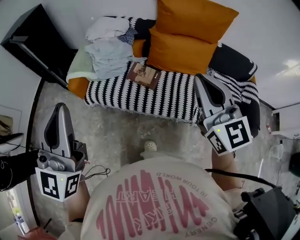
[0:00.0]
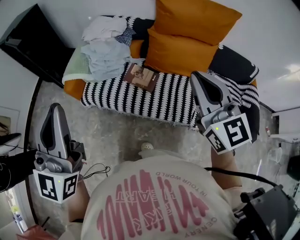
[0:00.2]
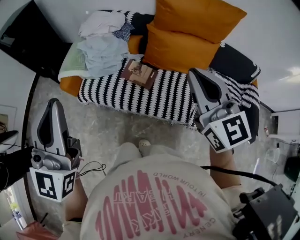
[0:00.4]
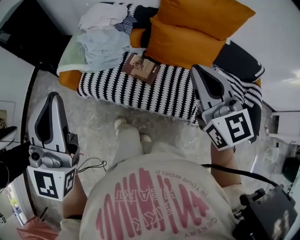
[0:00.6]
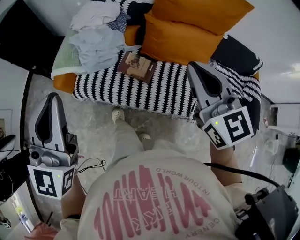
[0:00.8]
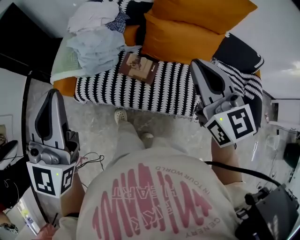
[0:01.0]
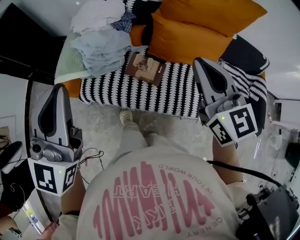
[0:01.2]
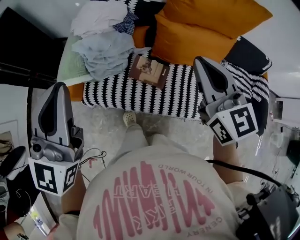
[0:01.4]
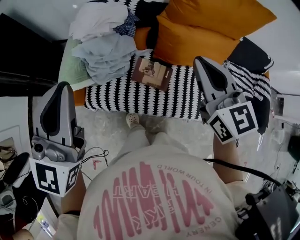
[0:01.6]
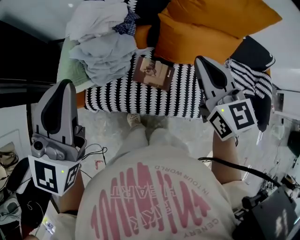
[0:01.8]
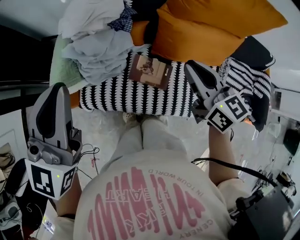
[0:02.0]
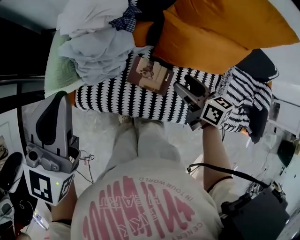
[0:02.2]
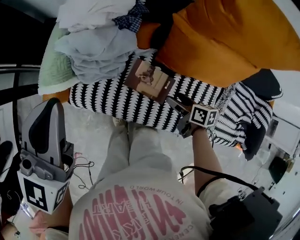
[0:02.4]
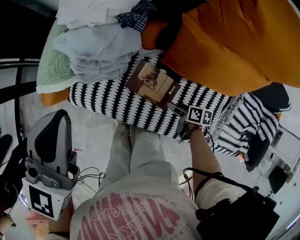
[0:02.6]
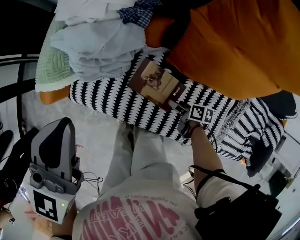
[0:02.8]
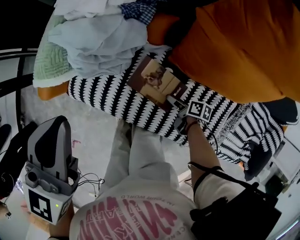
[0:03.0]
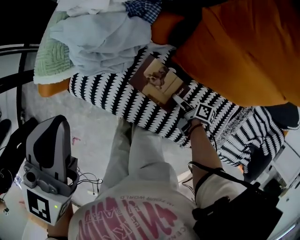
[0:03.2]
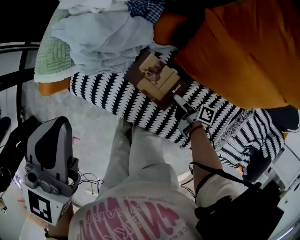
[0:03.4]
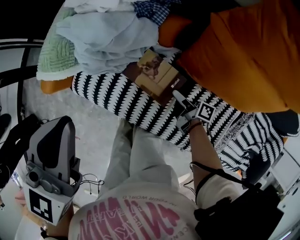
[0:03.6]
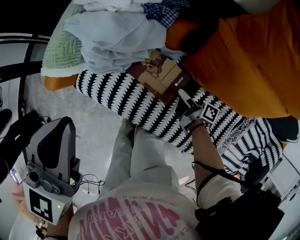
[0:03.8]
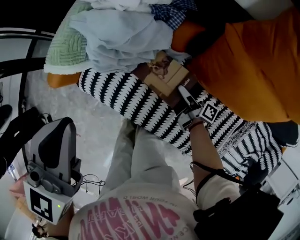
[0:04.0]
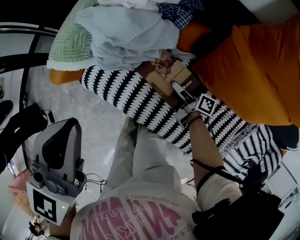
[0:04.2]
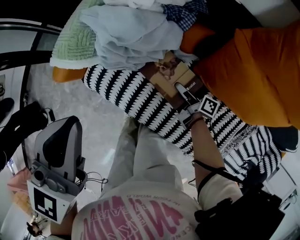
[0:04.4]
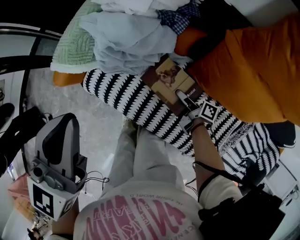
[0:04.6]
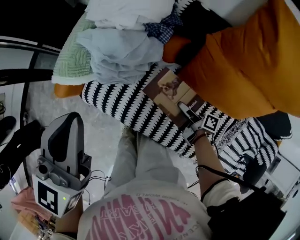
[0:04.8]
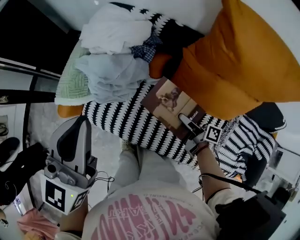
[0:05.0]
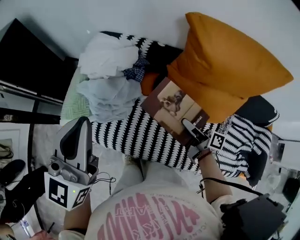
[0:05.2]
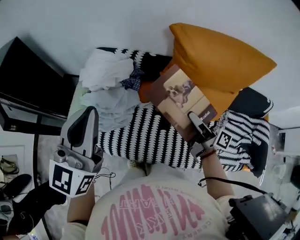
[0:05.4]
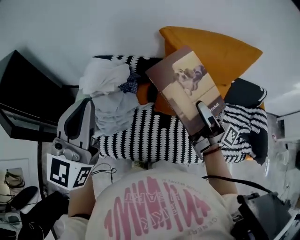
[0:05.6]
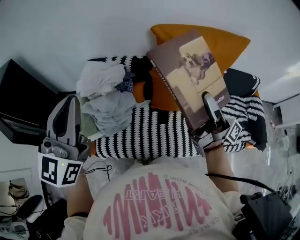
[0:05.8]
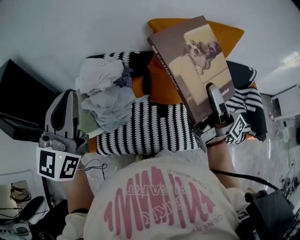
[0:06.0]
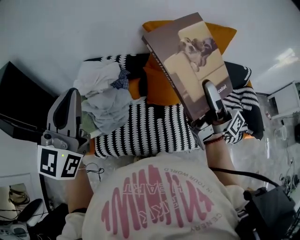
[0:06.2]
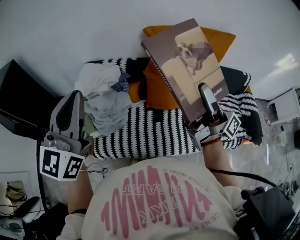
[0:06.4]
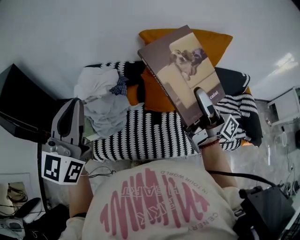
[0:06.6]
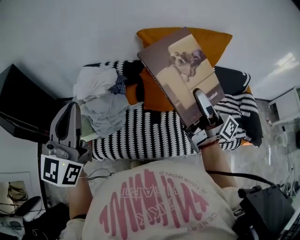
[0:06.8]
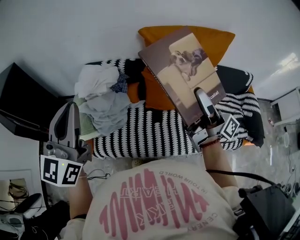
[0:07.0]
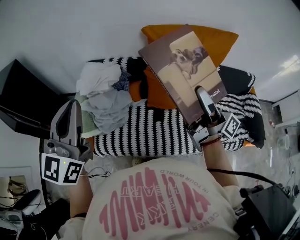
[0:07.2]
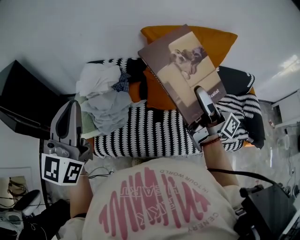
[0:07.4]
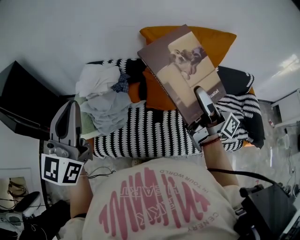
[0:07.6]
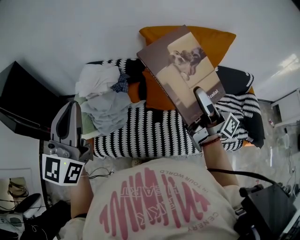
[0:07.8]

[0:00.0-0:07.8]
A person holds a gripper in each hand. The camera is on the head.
0:00.0 to 0:01.6: The grippers both shift forward by roughly 25 cm.
0:01.6 to 0:03.2: The left gripper travels downward by about 20 cm, and rotates roughly 30 degrees. The right gripper goes approximately 50 cm downward, twists roughly 80 degrees clockwise, seen from behind, and opens its fingers.
0:03.2 to 0:04.6: The right gripper goes about 10 cm forward, upward and to the left, and closes, while the left gripper changes place by some 5 cm.
0:04.6 to 0:06.2: The left gripper travels upward by approximately 20 cm, and swivels about 40 degrees. The right gripper goes some 60 cm upward, and points its fingers about 50 degrees further upward.
0:06.2 to 0:07.8: There are only small adjustments of the grippers.

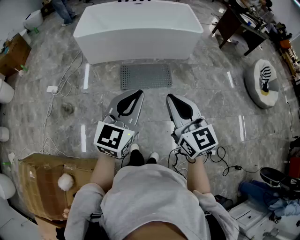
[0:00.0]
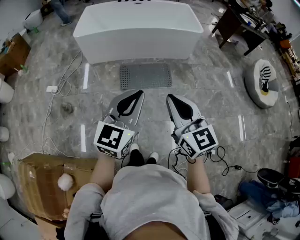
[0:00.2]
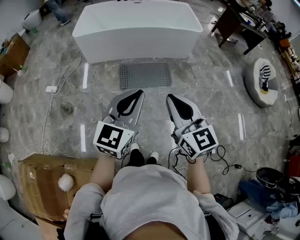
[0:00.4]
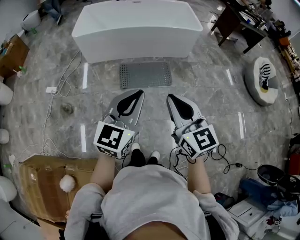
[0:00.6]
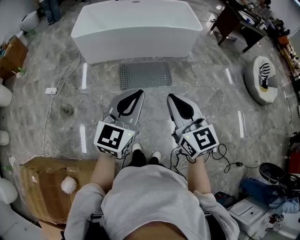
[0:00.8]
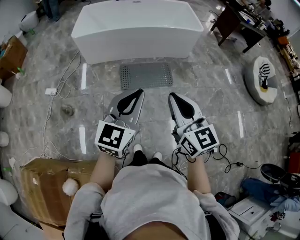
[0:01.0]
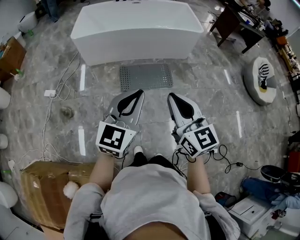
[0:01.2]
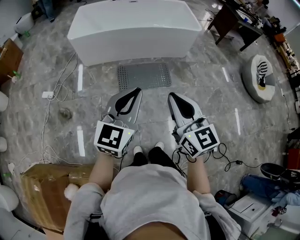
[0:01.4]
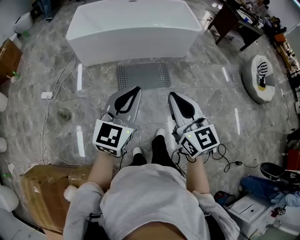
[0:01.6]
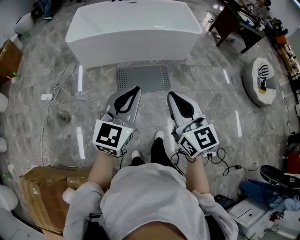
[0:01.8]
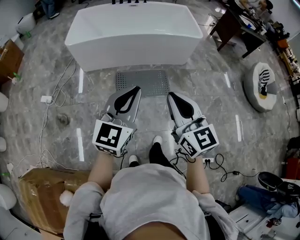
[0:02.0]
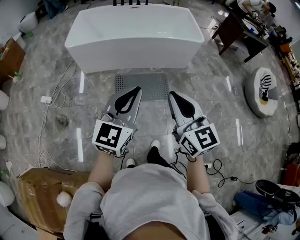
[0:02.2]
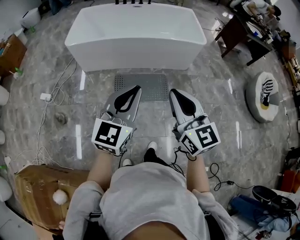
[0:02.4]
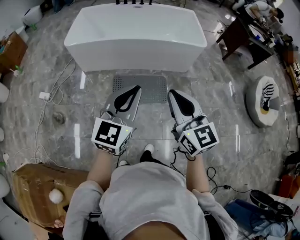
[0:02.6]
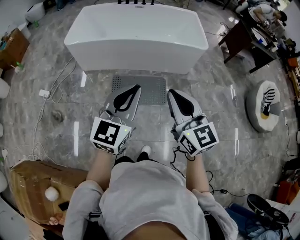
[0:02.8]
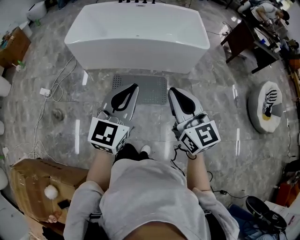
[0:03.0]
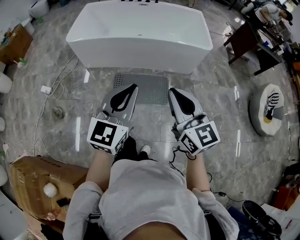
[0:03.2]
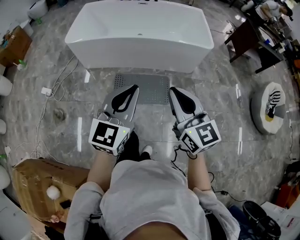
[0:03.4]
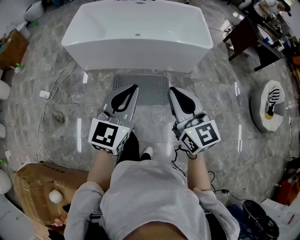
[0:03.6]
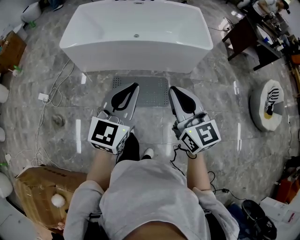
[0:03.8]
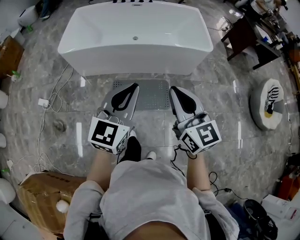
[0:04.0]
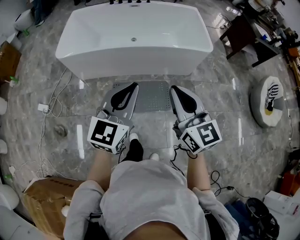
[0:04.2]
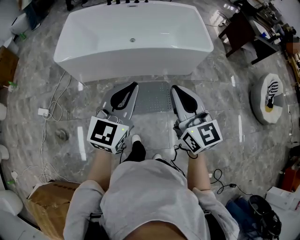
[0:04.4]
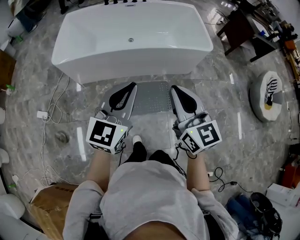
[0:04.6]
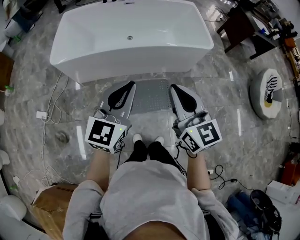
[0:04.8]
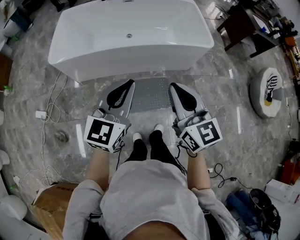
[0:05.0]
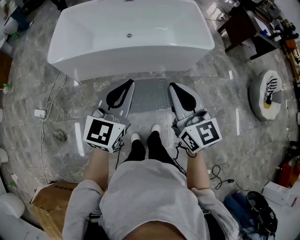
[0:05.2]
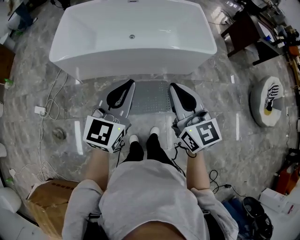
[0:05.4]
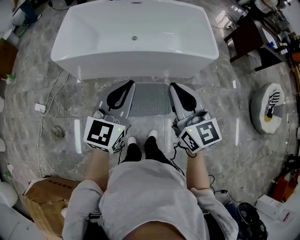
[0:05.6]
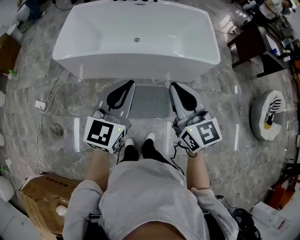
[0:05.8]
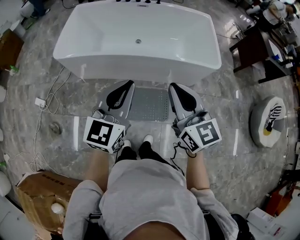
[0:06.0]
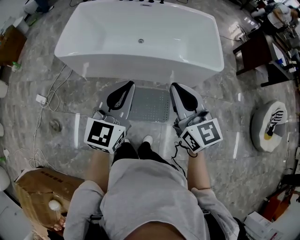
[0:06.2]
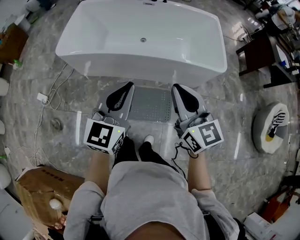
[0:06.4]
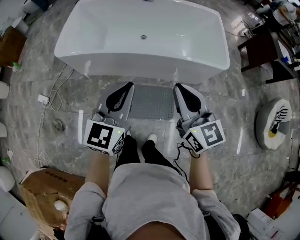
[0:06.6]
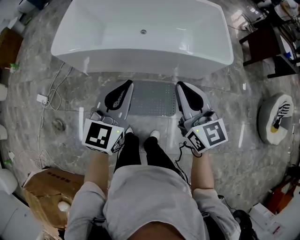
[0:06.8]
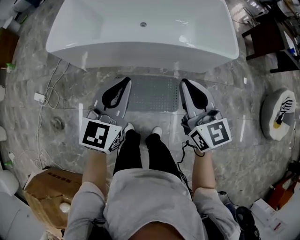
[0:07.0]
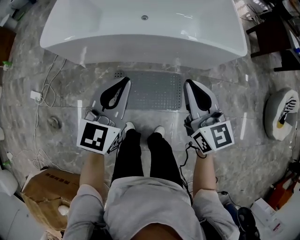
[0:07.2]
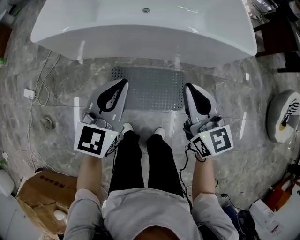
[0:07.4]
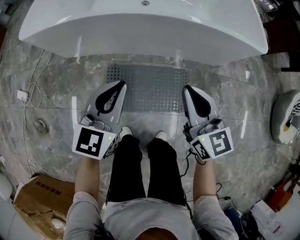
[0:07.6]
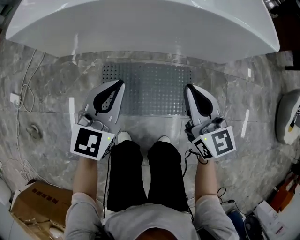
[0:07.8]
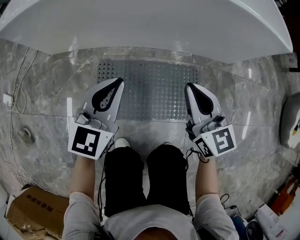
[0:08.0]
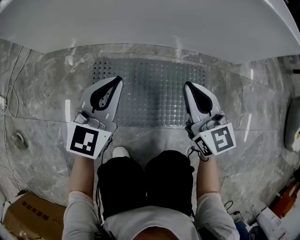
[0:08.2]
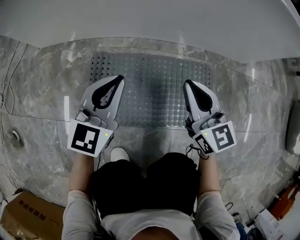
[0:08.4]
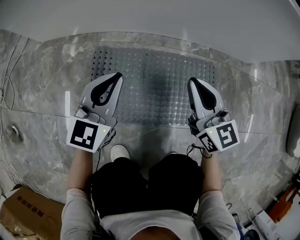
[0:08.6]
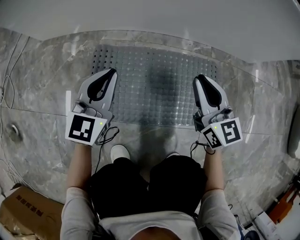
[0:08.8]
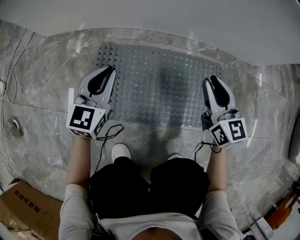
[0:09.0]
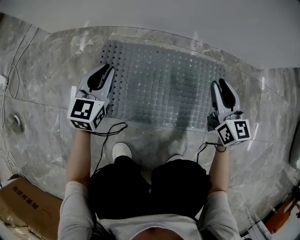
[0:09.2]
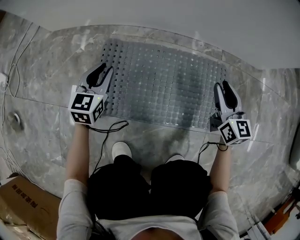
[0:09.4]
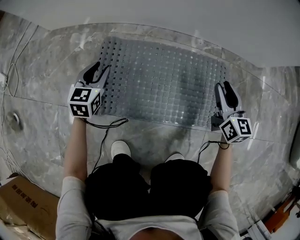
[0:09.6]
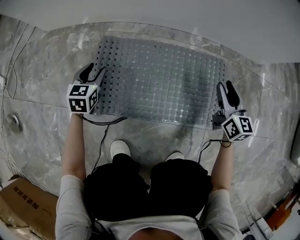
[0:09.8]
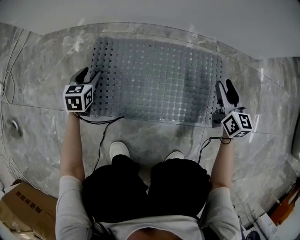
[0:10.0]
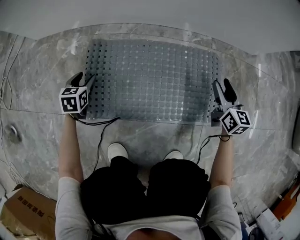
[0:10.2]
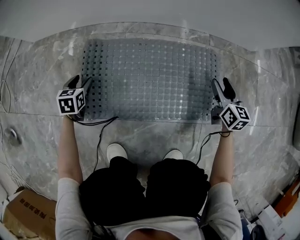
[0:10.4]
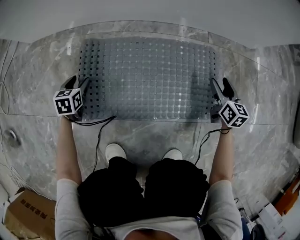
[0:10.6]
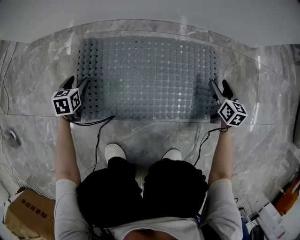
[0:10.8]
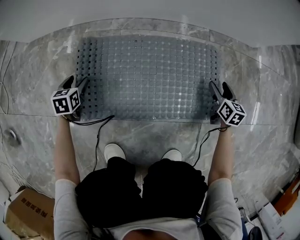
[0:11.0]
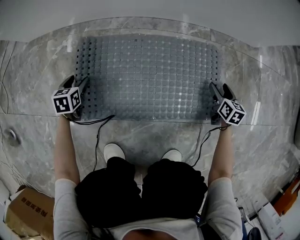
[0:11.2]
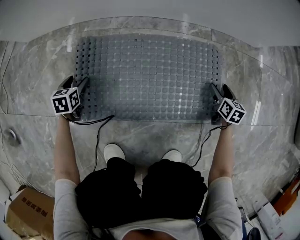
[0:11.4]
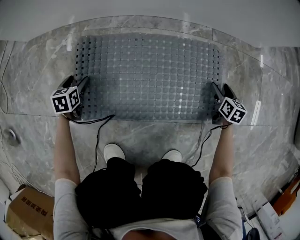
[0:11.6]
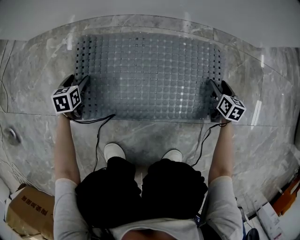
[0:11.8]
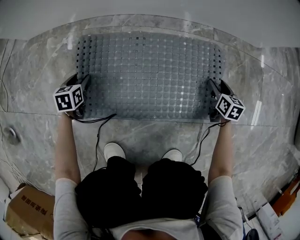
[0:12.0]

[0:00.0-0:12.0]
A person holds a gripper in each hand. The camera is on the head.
0:00.0 to 0:01.6: The left gripper shifts some 10 cm forward and to the left, while the right gripper moves forward, roughly 5 cm.
0:01.6 to 0:03.0: Both grippers travel together forward and to the right, some 25 cm.
0:03.0 to 0:04.4: The grippers both shift forward by approximately 20 cm.
0:04.4 to 0:06.0: Both grippers travel together forward, about 15 cm.
0:06.0 to 0:07.6: Both grippers move downward, roughly 40 cm.
0:07.6 to 0:09.0: Both grippers move downward, approximately 40 cm.
0:09.0 to 0:10.4: The right gripper travels to the right and downward by roughly 20 cm, rotates some 20 degrees, and opens its fingers; the left gripper travels downward and to the left by some 25 cm, angles its fingers downward, by roughly 30 degrees, and opens its fingers.
0:10.4 to 0:12.0: The right gripper moves downward, roughly 10 cm, and swivels some 20 degrees.

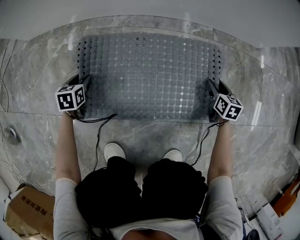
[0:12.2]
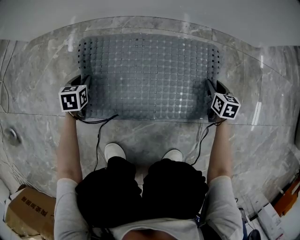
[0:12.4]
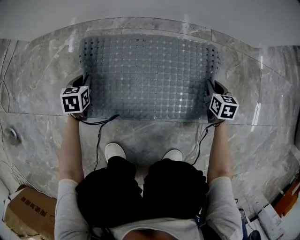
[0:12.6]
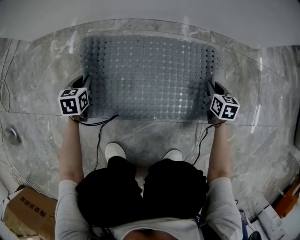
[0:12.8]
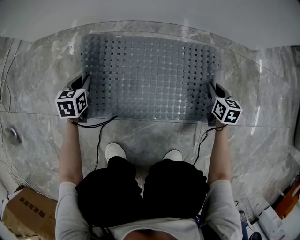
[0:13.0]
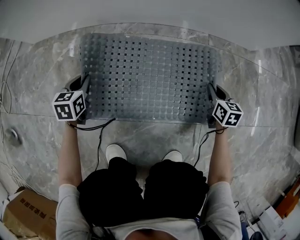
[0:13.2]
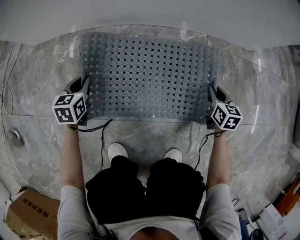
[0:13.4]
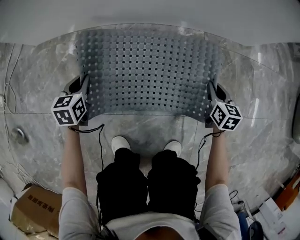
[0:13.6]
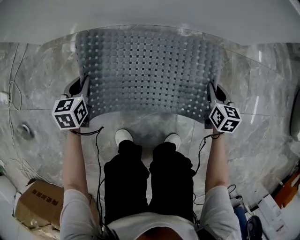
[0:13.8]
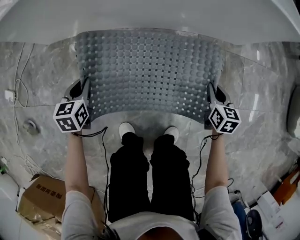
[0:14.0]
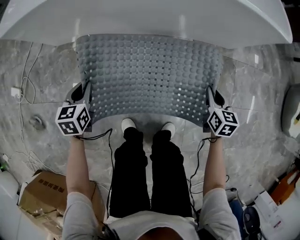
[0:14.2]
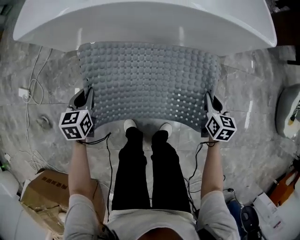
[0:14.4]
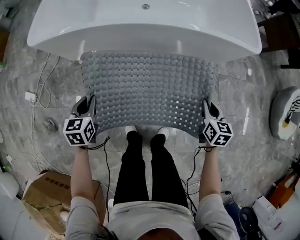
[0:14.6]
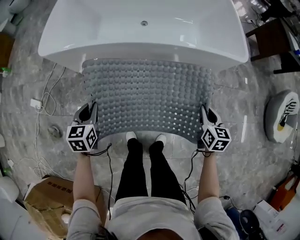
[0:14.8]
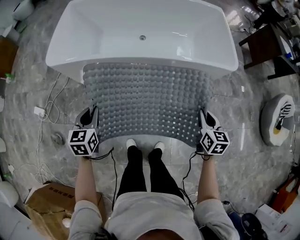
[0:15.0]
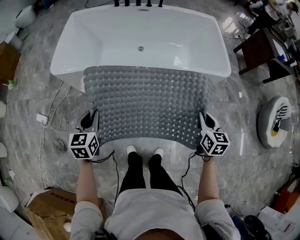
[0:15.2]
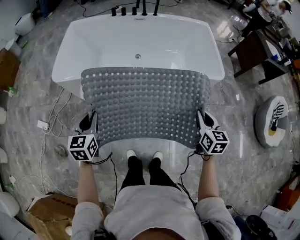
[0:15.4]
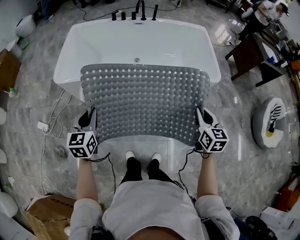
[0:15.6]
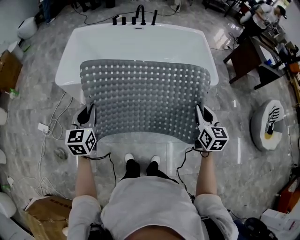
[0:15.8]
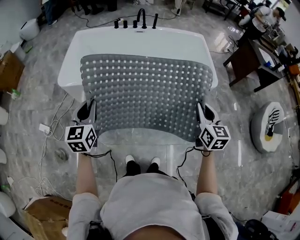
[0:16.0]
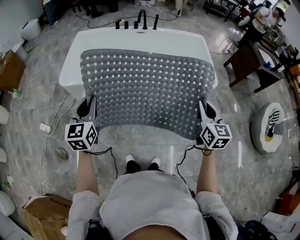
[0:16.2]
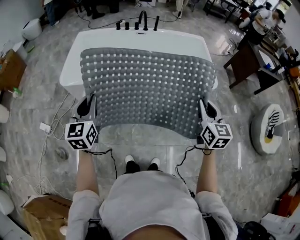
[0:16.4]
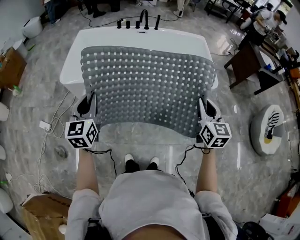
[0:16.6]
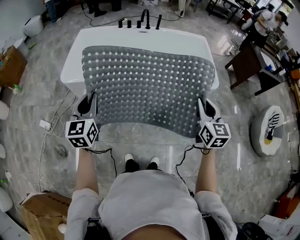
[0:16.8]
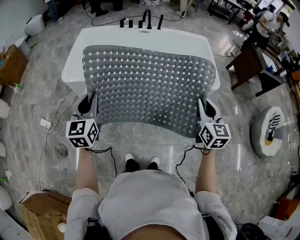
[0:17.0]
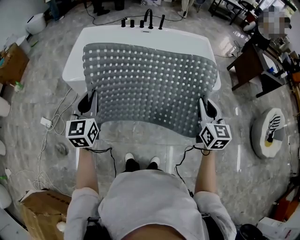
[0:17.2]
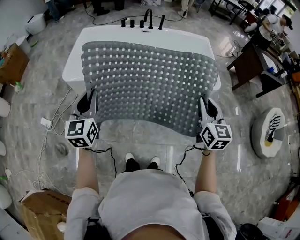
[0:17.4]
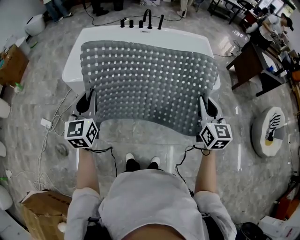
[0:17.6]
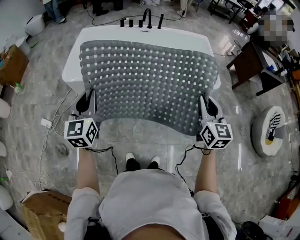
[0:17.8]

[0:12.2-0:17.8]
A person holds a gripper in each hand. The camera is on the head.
0:12.2 to 0:13.6: The grippers both shift upward by approximately 15 cm. The left gripper closes, while the right gripper closes.
0:13.6 to 0:15.0: Both grippers travel together upward, some 70 cm.
0:15.0 to 0:16.4: The grippers both shift upward by approximately 25 cm. The left gripper rotates some 20 degrees; the right gripper rotates roughly 20 degrees.
0:16.4 to 0:17.8: The grippers move only a little.
